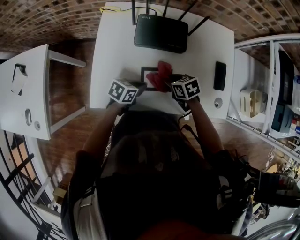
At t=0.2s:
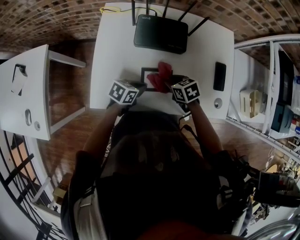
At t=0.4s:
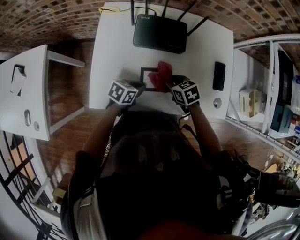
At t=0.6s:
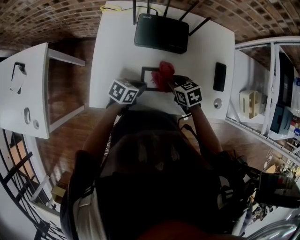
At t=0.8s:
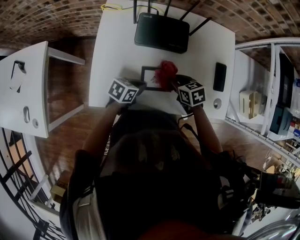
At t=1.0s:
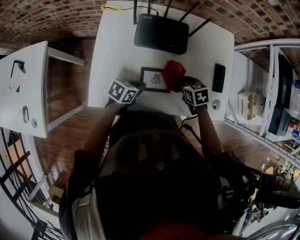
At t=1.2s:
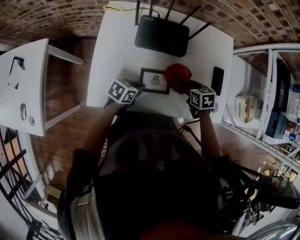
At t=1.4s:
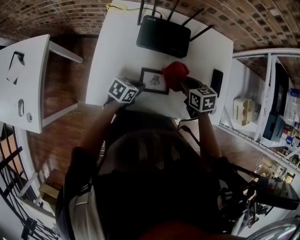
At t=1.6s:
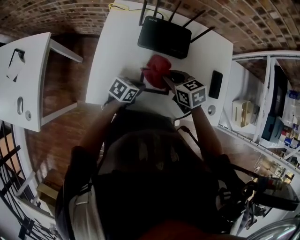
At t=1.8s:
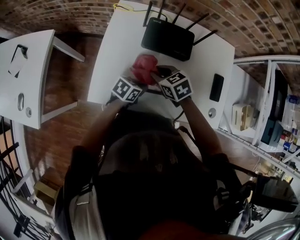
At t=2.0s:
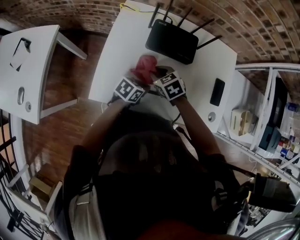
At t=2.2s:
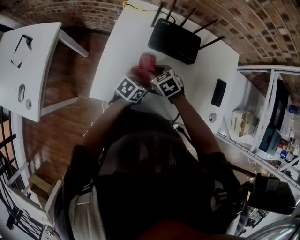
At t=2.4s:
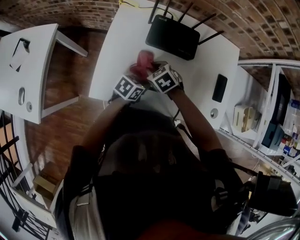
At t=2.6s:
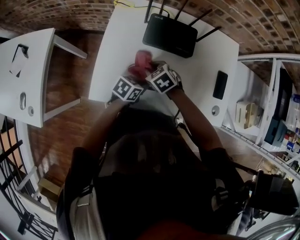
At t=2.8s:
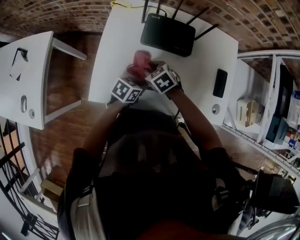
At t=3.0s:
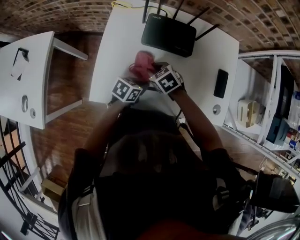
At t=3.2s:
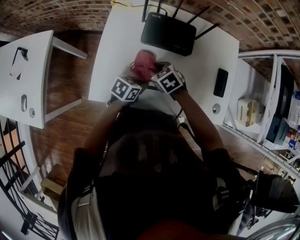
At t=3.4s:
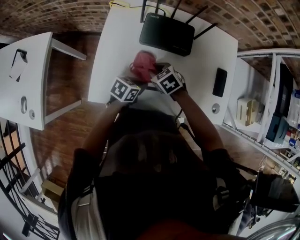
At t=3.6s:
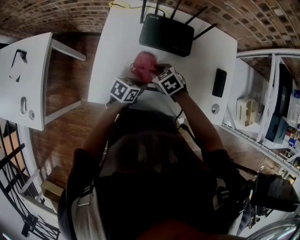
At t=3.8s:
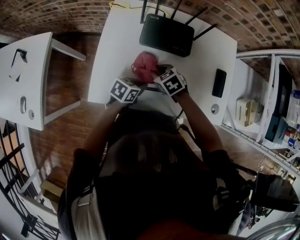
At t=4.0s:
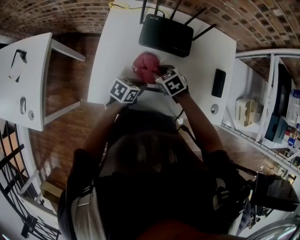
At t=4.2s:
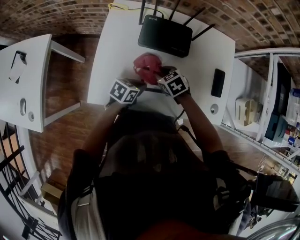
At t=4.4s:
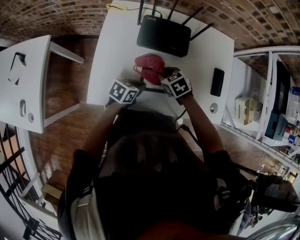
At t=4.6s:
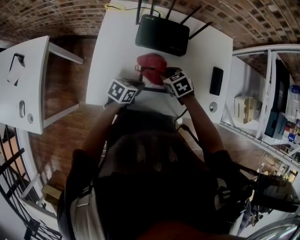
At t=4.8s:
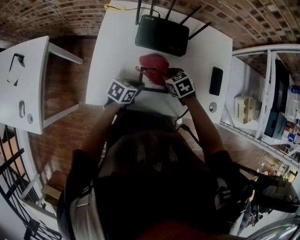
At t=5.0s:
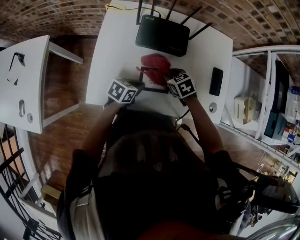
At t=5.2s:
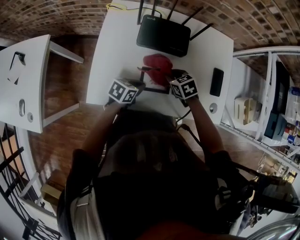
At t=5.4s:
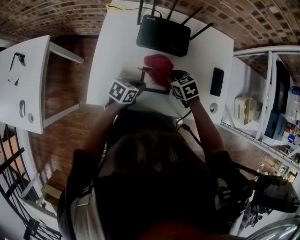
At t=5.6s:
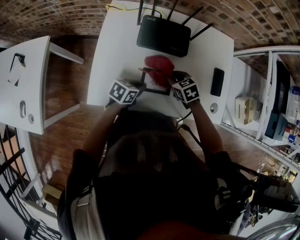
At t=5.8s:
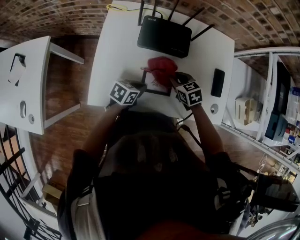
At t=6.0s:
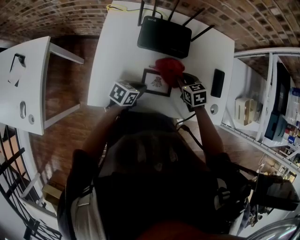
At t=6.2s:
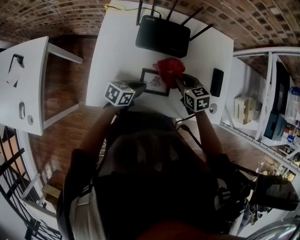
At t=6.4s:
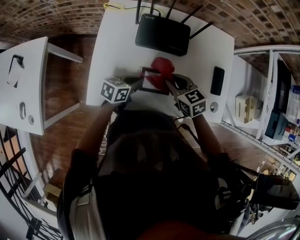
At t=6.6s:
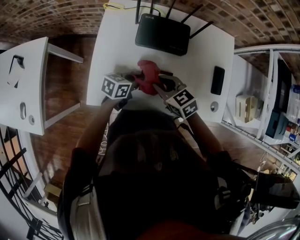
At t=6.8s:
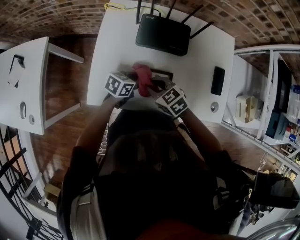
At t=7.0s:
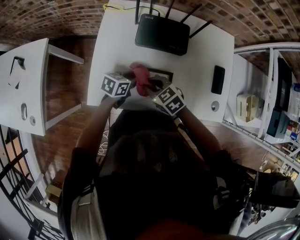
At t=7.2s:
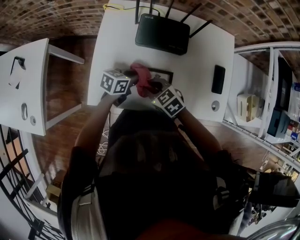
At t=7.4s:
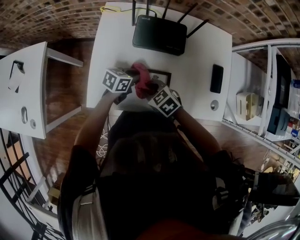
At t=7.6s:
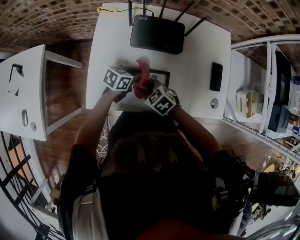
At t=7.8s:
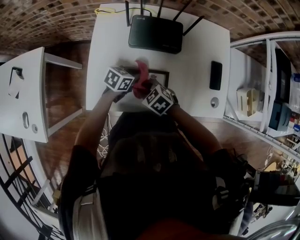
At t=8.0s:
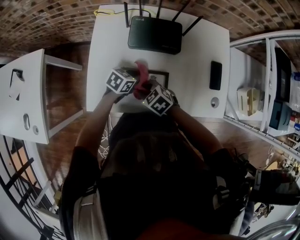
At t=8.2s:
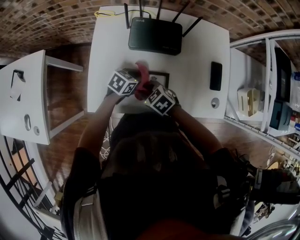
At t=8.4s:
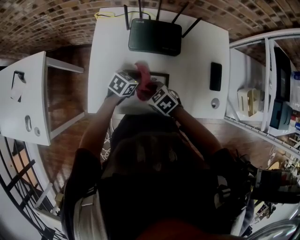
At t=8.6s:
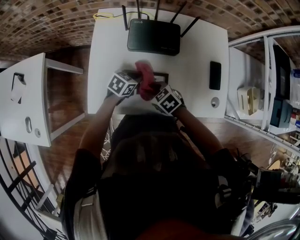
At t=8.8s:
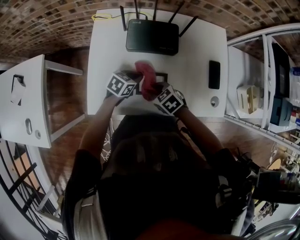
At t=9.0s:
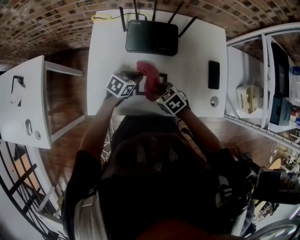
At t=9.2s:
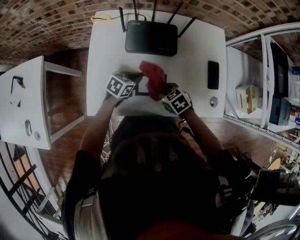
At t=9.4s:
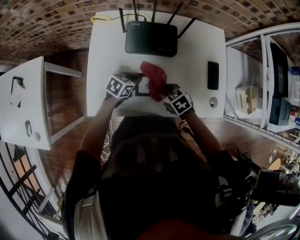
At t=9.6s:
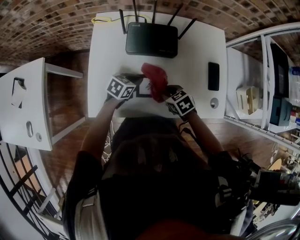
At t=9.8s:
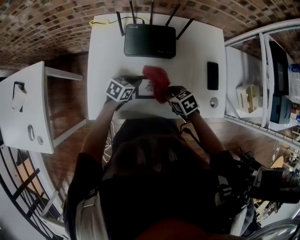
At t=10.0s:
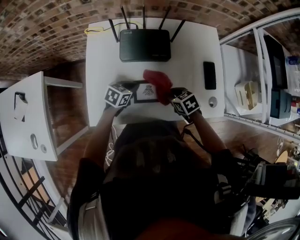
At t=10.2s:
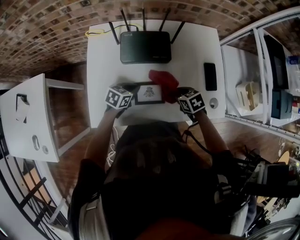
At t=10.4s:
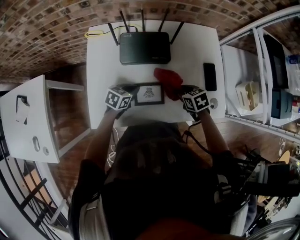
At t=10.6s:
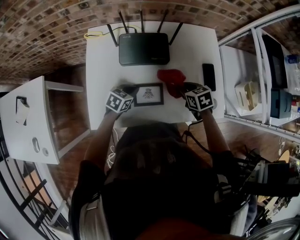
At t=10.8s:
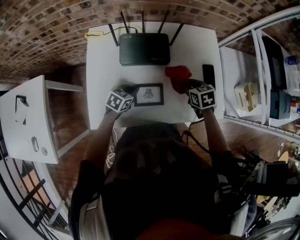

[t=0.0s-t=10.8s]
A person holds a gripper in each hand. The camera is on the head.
t=0.0s to t=1.6s: The right gripper moves upward, about 10 cm.
t=1.6s to t=3.0s: The right gripper moves downward, approximately 10 cm.
t=3.0s to t=4.6s: The right gripper is displaced to the right by some 10 cm.
t=4.6s to t=6.2s: The right gripper is displaced to the right by roughly 5 cm.
t=6.2s to t=7.8s: The right gripper changes place by approximately 15 cm, and turns by approximately 30 degrees. The left gripper changes place by approximately 5 cm.
t=7.8s to t=9.2s: The right gripper changes place by roughly 10 cm.
t=9.2s to t=10.8s: The right gripper shifts roughly 15 cm to the right, forward and upward, and swivels approximately 30 degrees.

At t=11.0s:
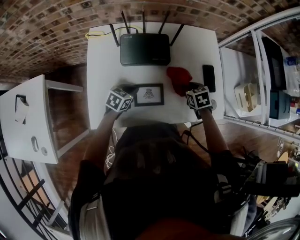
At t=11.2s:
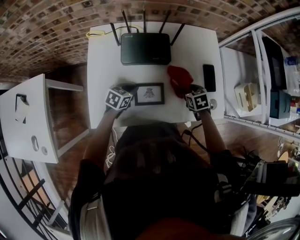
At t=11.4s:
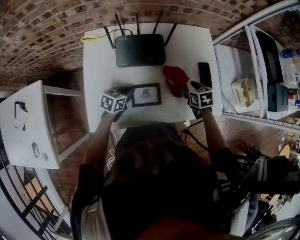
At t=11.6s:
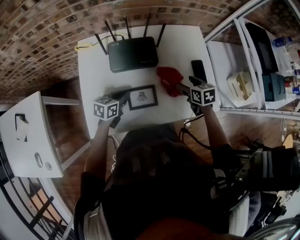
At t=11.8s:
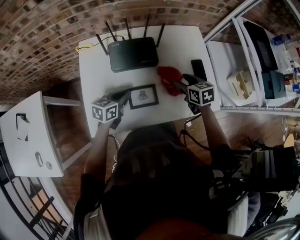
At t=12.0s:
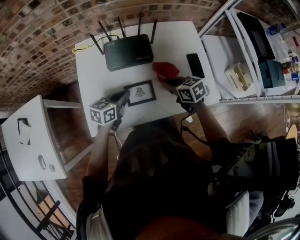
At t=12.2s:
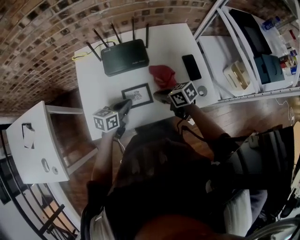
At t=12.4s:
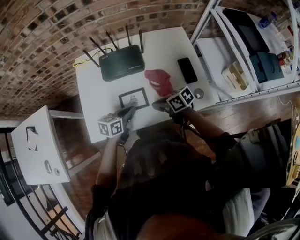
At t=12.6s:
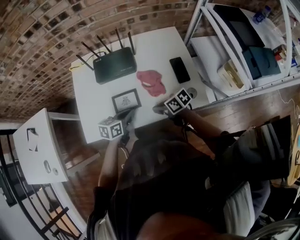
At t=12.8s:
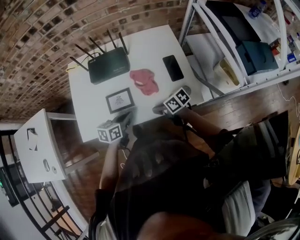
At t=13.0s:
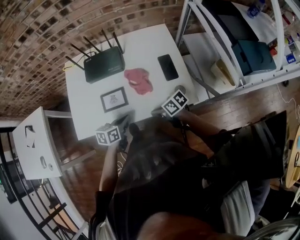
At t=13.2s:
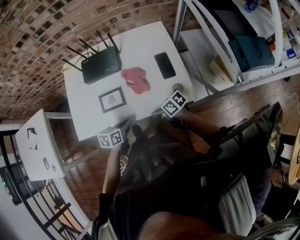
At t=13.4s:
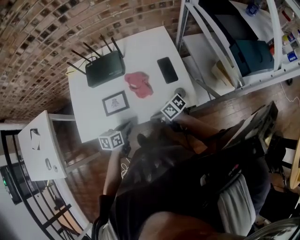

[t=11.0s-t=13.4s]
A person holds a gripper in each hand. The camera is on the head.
t=11.0s to t=12.2s: The right gripper moves backward, to the left and upward, some 15 cm, rotates roughly 40 degrees, and opens, then closes once more; the left gripper travels upward and backward by roughly 10 cm, and changes its angle by about 20 degrees.
t=12.2s to t=13.4s: The left gripper moves roughly 15 cm. The right gripper changes place by approximately 15 cm, and swivels some 20 degrees.

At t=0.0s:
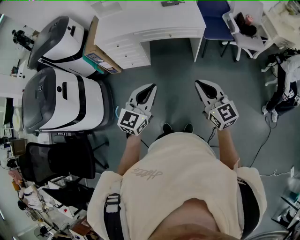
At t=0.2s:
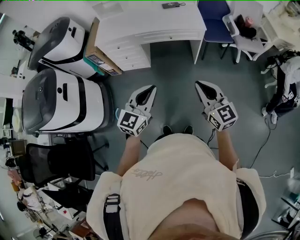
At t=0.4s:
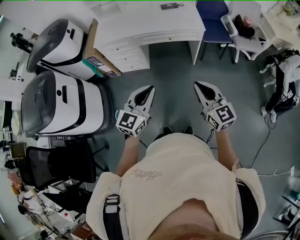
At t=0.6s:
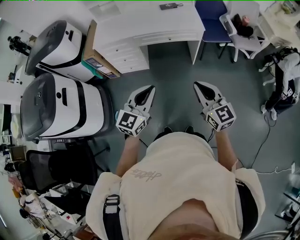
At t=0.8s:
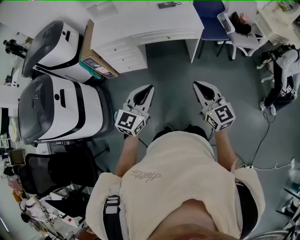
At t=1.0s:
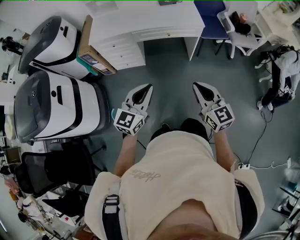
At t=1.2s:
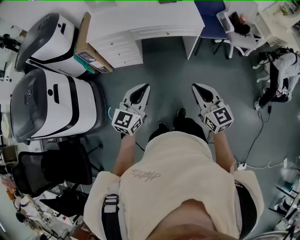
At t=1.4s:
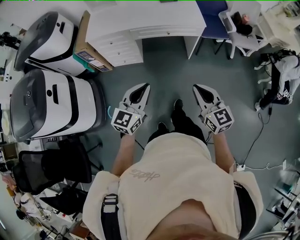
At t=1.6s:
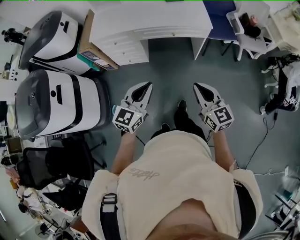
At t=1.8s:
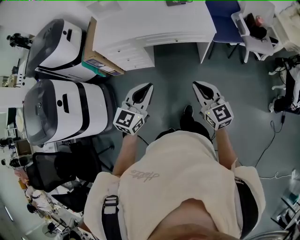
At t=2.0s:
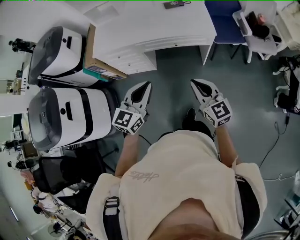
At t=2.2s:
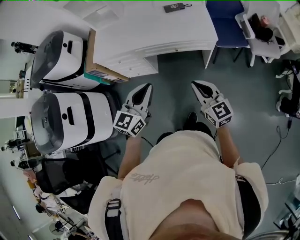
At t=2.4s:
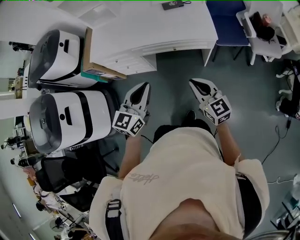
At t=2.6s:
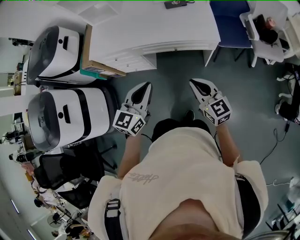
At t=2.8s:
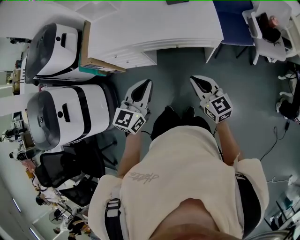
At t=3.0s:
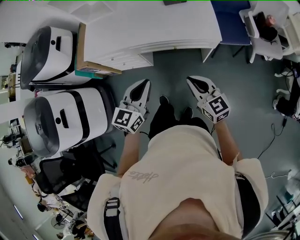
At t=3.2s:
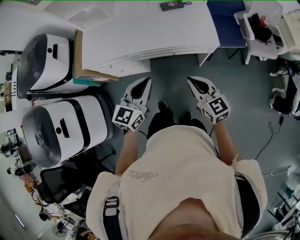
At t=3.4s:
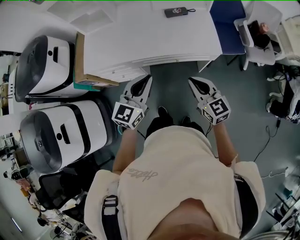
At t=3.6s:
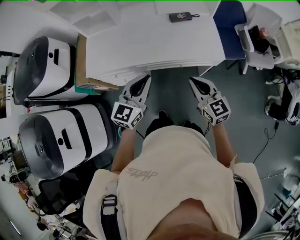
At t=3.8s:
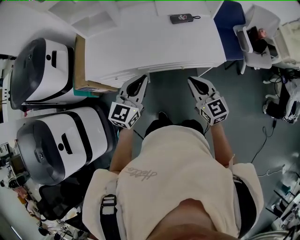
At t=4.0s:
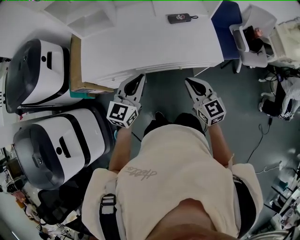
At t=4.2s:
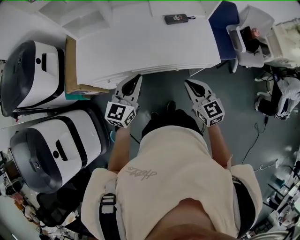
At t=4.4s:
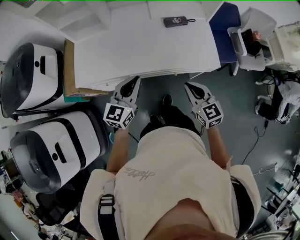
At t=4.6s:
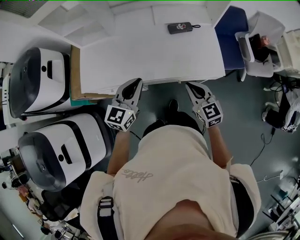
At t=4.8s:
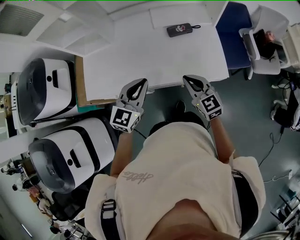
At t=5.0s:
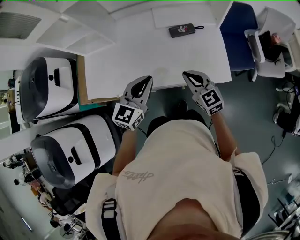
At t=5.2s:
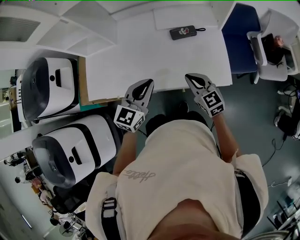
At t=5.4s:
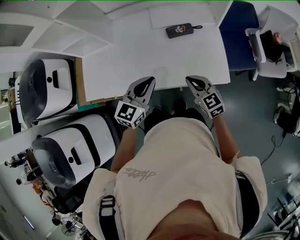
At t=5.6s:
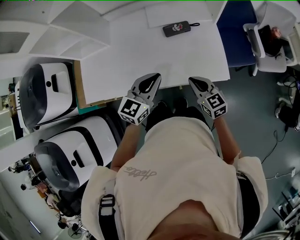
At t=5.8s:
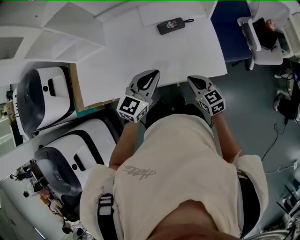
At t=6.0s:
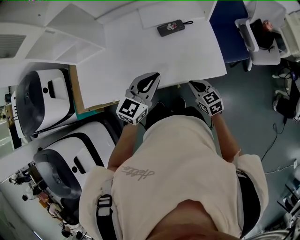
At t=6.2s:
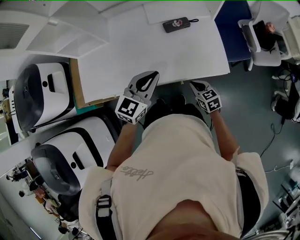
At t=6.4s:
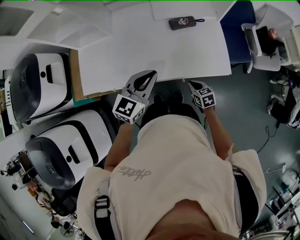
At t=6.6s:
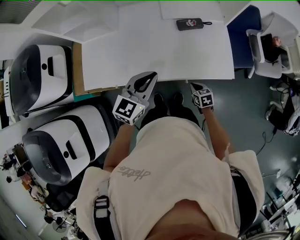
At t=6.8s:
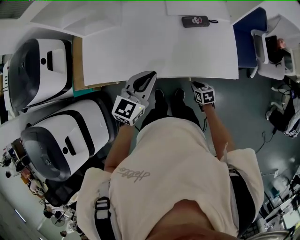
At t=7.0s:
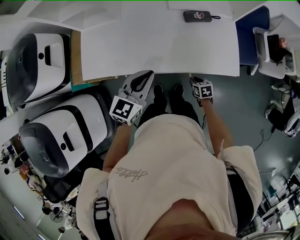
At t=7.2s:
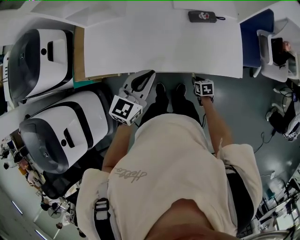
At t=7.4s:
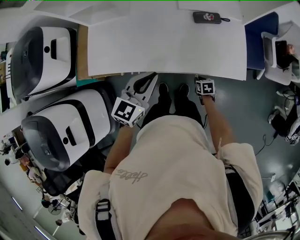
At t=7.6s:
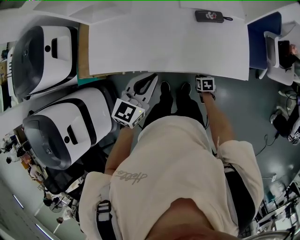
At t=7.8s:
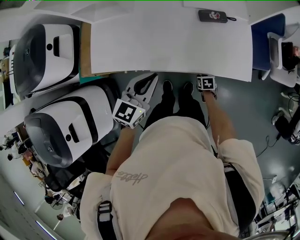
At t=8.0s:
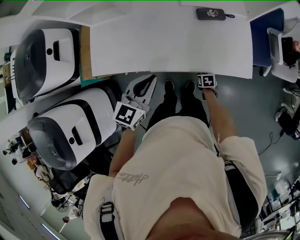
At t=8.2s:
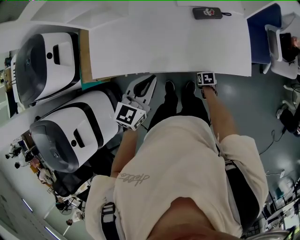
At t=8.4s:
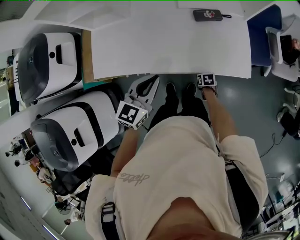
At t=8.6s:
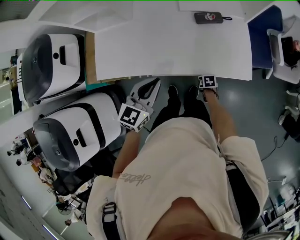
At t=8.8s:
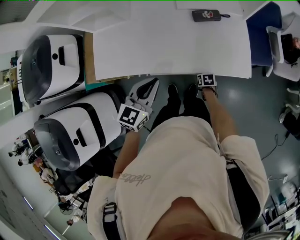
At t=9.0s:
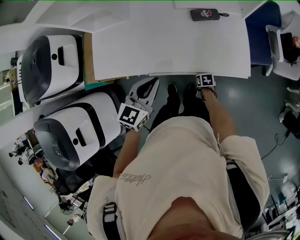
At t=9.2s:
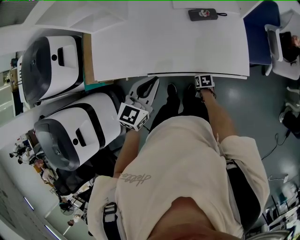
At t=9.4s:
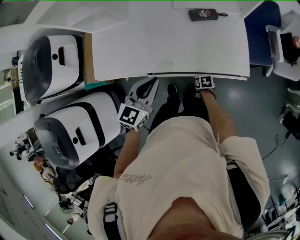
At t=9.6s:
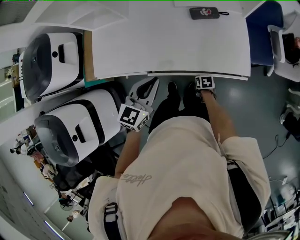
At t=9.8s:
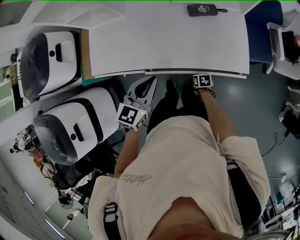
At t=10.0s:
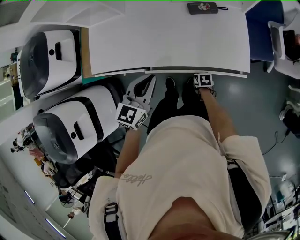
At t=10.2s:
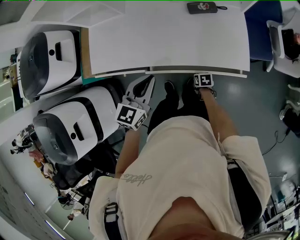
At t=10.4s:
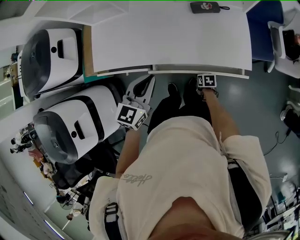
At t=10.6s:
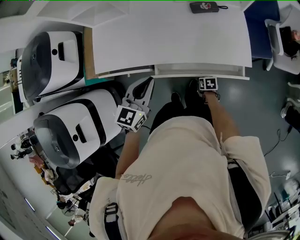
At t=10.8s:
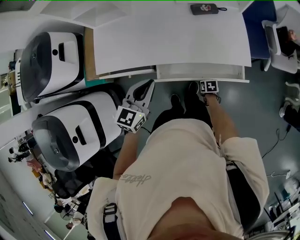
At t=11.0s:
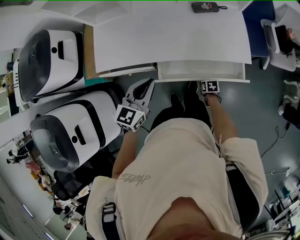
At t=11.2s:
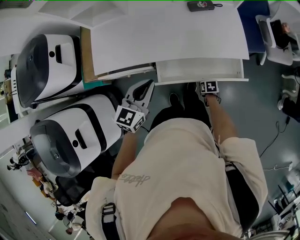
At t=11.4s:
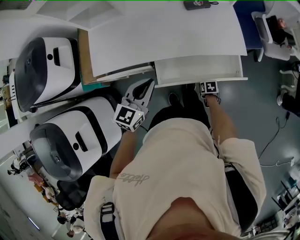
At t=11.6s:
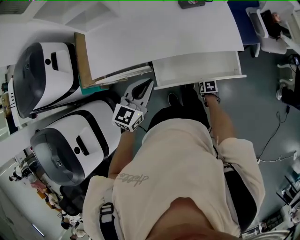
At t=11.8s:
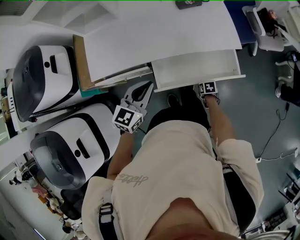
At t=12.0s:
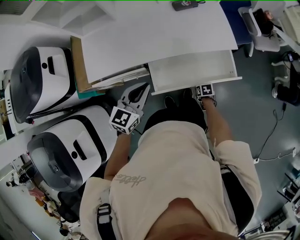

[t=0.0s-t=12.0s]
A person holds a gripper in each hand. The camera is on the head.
t=0.0s to t=1.6s: The left gripper travels forward and to the left by roughly 10 cm; the right gripper moves forward and downward, some 10 cm.
t=1.6s to t=3.0s: The two grippers go about 25 cm forward.
t=3.0s to t=4.4s: Both grippers move forward and to the left, approximately 20 cm.
t=4.4s to t=6.0s: The right gripper moves downward, forward and to the right, some 20 cm. The left gripper moves to the right and forward, some 20 cm.
t=6.0s to t=7.6s: The right gripper heads downward, covering approximately 25 cm, angles its fingers downward, by approximately 30 degrees, and opens its fingers. The left gripper goes roughly 15 cm to the left.
t=7.6s to t=10.4s: The grippers make only small movements.
t=10.4s to t=12.0s: The left gripper moves roughly 10 cm, while the right gripper shifts by about 15 cm.
